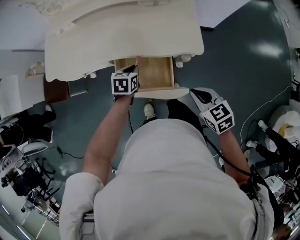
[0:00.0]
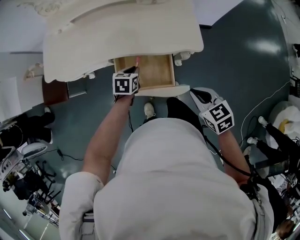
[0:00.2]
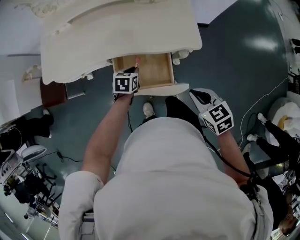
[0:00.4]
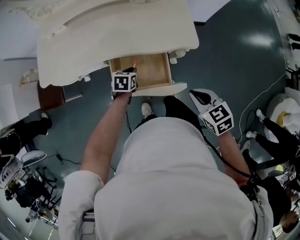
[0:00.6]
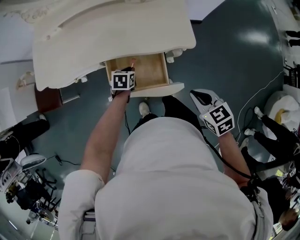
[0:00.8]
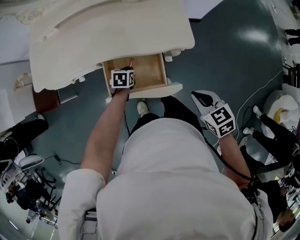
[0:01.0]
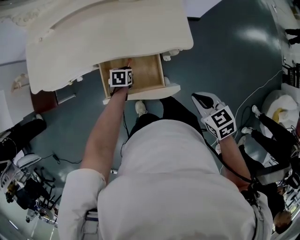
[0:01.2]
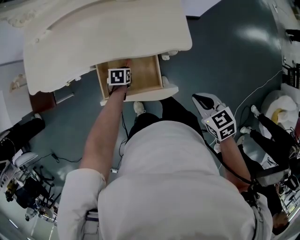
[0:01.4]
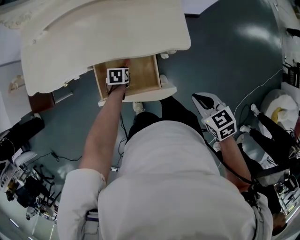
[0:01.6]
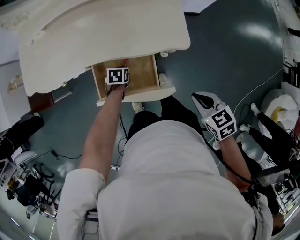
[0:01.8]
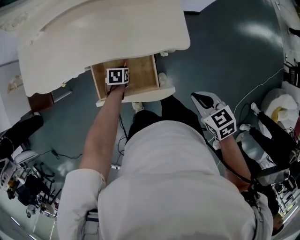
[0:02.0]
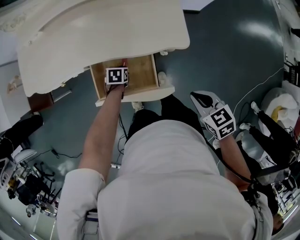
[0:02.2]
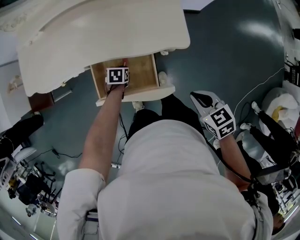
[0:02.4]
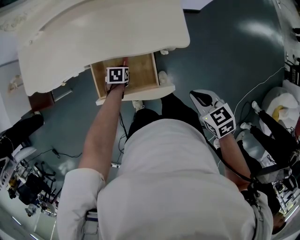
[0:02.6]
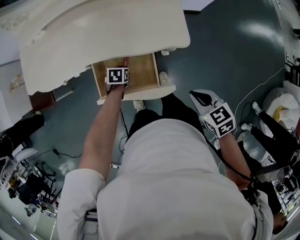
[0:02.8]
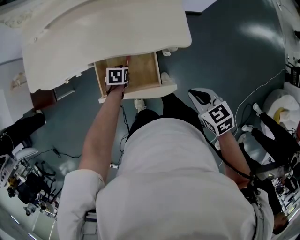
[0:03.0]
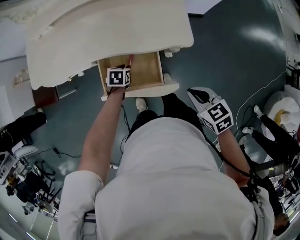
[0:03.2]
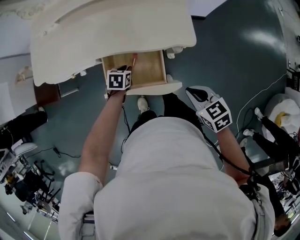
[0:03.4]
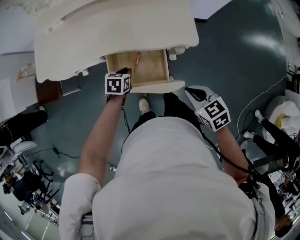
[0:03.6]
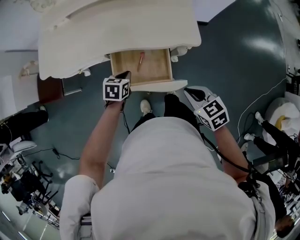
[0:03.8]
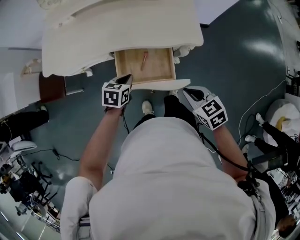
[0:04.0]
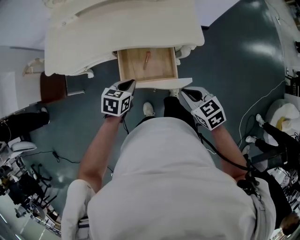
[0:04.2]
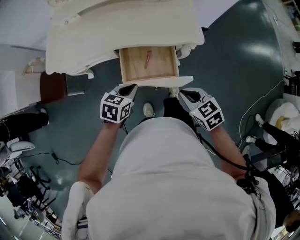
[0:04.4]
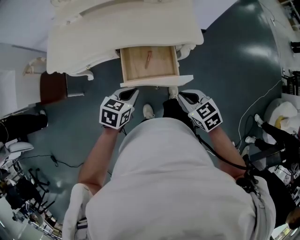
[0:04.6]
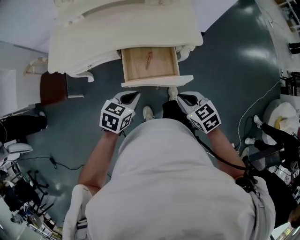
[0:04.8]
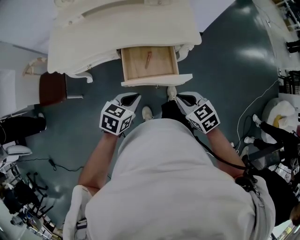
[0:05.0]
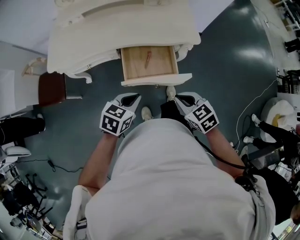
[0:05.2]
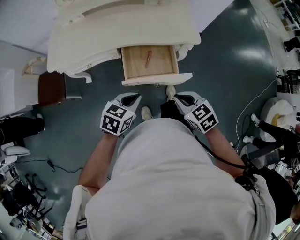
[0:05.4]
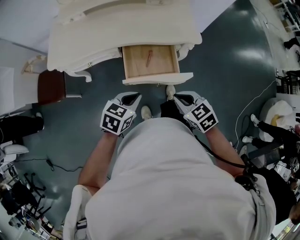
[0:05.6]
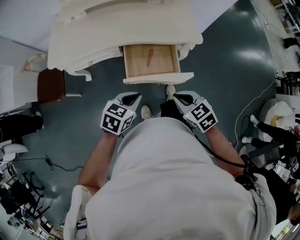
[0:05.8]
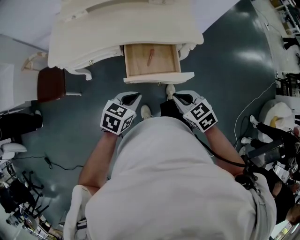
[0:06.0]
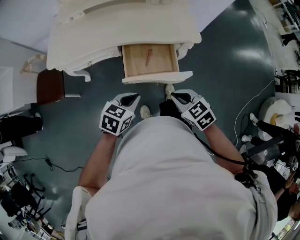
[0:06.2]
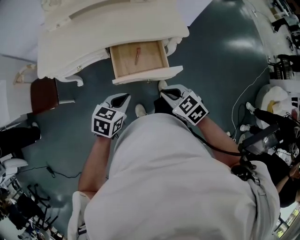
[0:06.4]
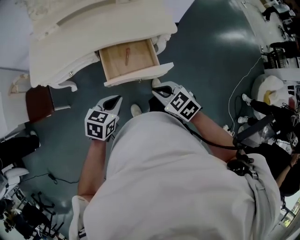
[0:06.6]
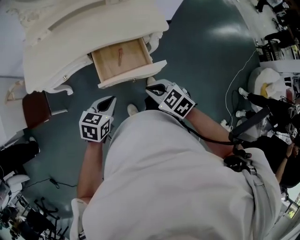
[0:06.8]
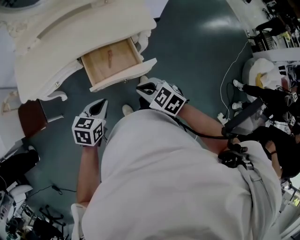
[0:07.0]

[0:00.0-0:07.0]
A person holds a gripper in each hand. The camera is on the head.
0.0 to 1.4 s: The left gripper travels downward by about 15 cm. The right gripper heads to the right, covering approximately 5 cm.
1.4 to 2.8 s: There are only small adjustments of the grippers.
2.8 to 4.2 s: The right gripper heads to the left, covering some 15 cm; the left gripper is displaced upward and backward by some 25 cm, changes its angle by some 20 degrees, and closes.
4.2 to 5.6 s: The left gripper heads backward and upward, covering roughly 15 cm. Meanwhile the right gripper shifts approximately 10 cm backward and to the left.
5.6 to 7.0 s: There are only small adjustments of the grippers.

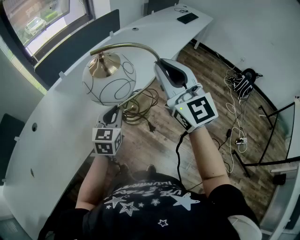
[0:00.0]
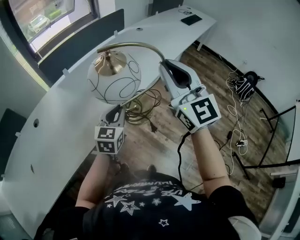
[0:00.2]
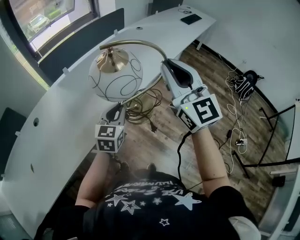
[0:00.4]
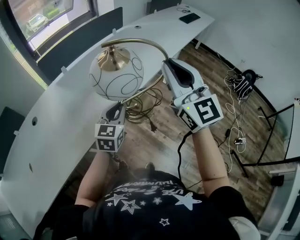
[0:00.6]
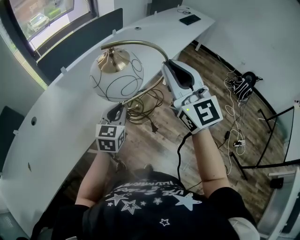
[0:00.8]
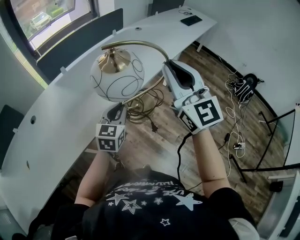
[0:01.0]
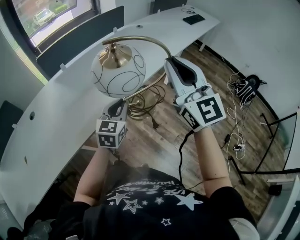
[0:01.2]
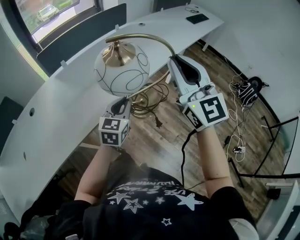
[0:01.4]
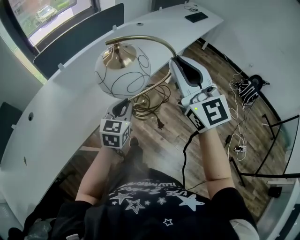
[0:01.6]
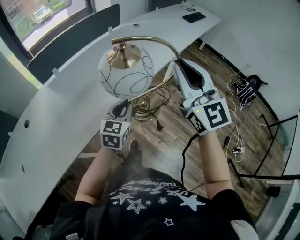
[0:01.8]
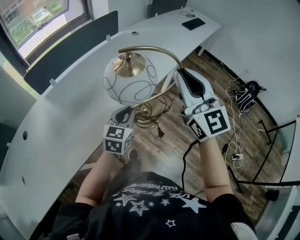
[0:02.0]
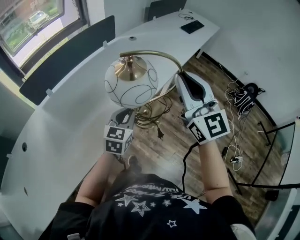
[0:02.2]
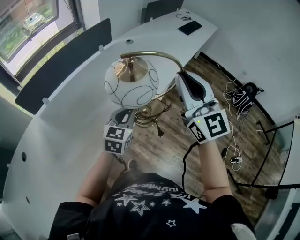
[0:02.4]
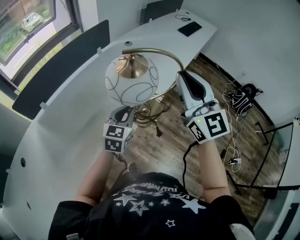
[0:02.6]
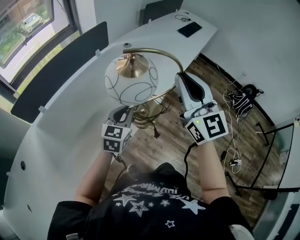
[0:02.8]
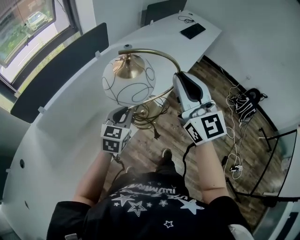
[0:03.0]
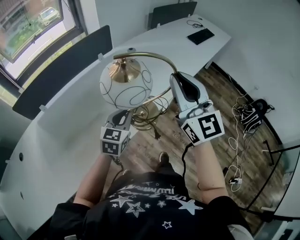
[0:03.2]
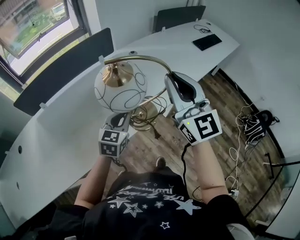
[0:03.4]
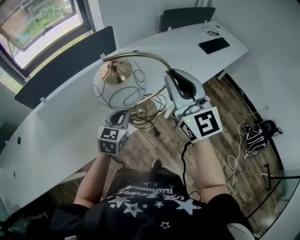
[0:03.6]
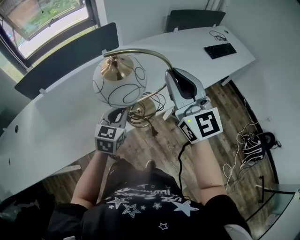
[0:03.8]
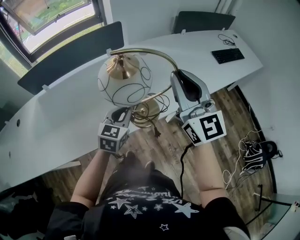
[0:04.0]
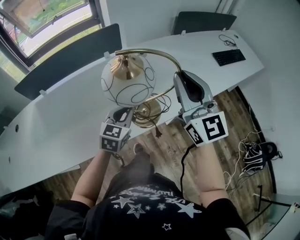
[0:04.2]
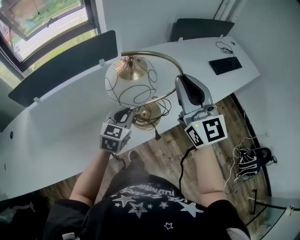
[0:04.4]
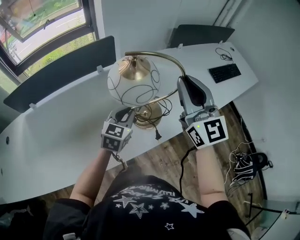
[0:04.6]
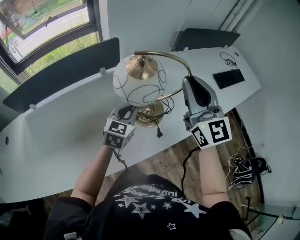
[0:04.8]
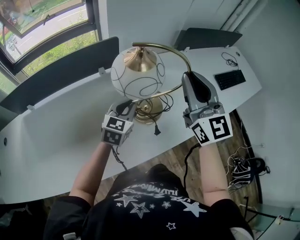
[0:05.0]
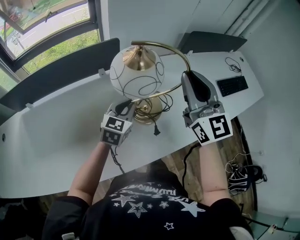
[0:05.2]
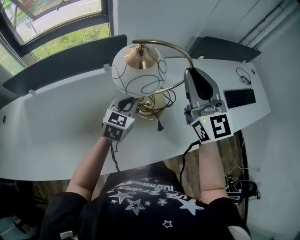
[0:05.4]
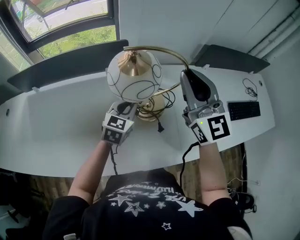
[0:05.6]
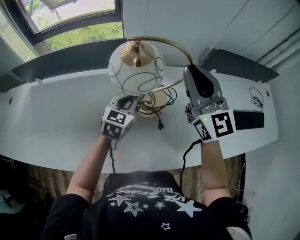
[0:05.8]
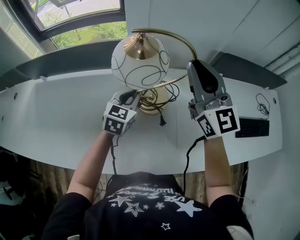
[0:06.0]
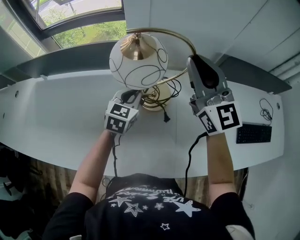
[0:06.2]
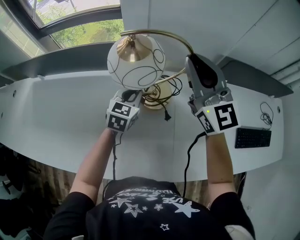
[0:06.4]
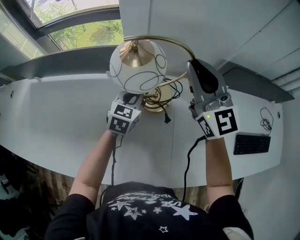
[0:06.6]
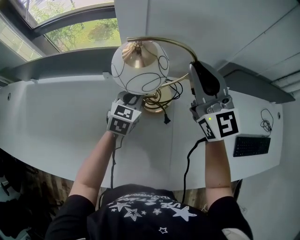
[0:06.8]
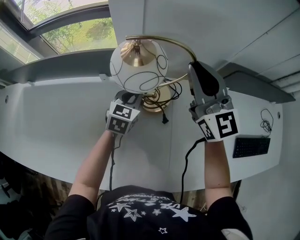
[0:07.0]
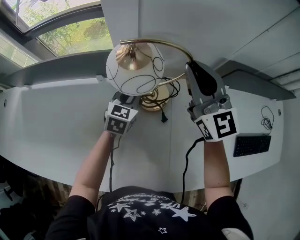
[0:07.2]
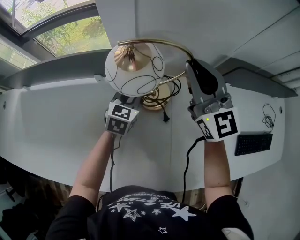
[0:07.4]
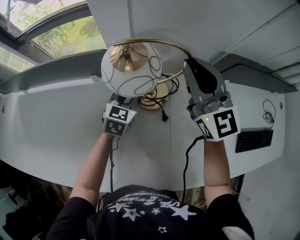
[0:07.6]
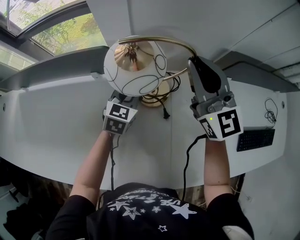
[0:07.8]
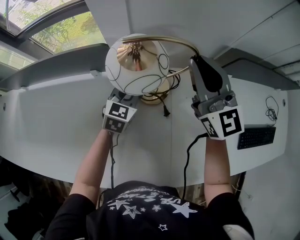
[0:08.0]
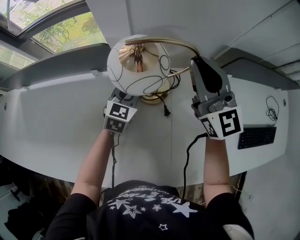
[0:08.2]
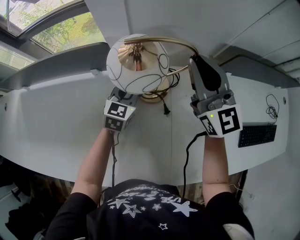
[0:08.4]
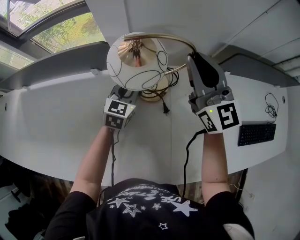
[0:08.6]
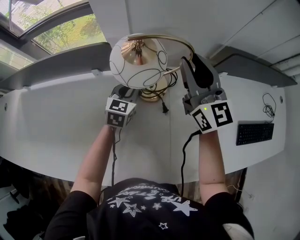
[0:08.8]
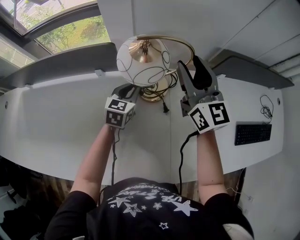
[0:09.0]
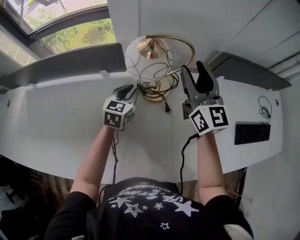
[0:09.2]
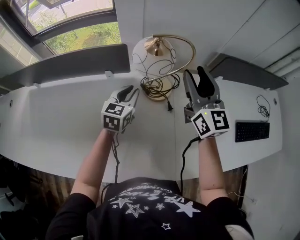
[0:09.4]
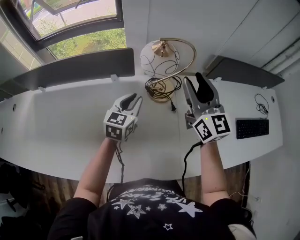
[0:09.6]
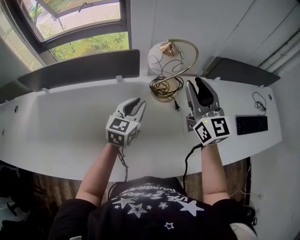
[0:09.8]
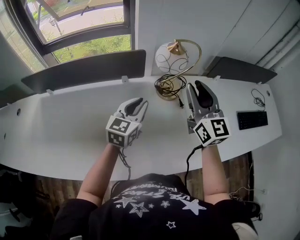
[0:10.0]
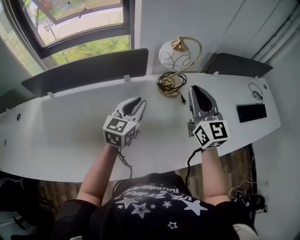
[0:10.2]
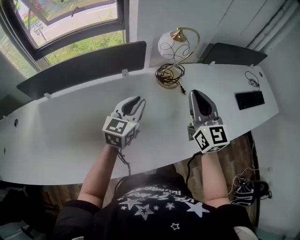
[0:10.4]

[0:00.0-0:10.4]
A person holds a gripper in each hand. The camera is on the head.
0.0 to 1.4 s: Both grippers move to the right, some 10 cm.
1.4 to 3.0 s: The grippers both shift forward by about 25 cm.
3.0 to 4.4 s: Both grippers travel together forward and to the right, roughly 25 cm. The right gripper swivels roughly 20 degrees.
4.4 to 6.0 s: The two grippers go roughly 30 cm forward. The right gripper changes its angle by about 20 degrees. The left gripper swivels approximately 20 degrees.
6.0 to 7.4 s: The left gripper is displaced forward, downward and to the right by approximately 15 cm; the right gripper is displaced forward and downward by about 15 cm.
7.4 to 9.0 s: The right gripper opens up.
9.0 to 10.4 s: The left gripper travels backward, upward and to the left by roughly 25 cm, and rotates approximately 20 degrees. Meanwhile the right gripper shifts some 25 cm backward, turns by approximately 20 degrees, and closes up.

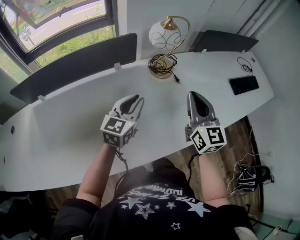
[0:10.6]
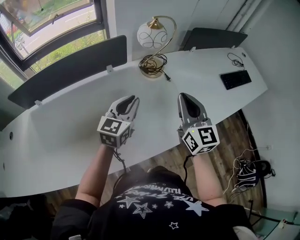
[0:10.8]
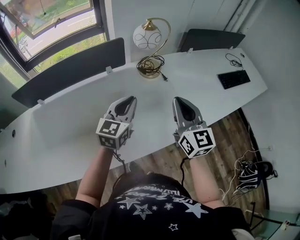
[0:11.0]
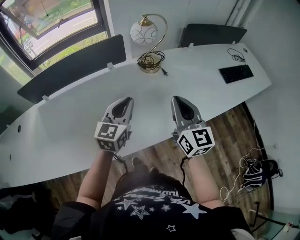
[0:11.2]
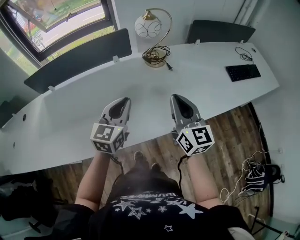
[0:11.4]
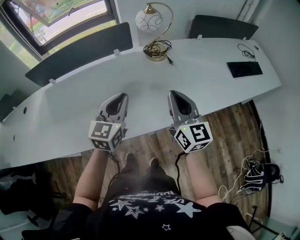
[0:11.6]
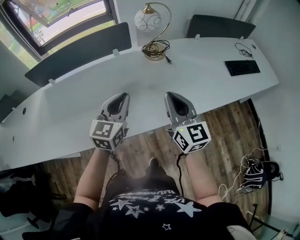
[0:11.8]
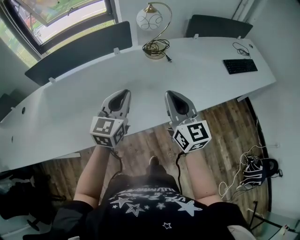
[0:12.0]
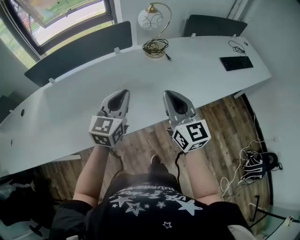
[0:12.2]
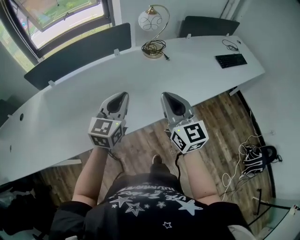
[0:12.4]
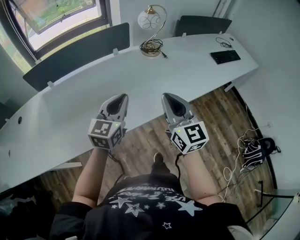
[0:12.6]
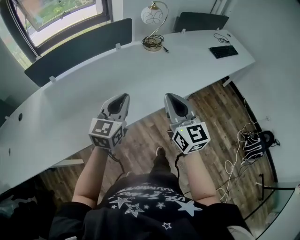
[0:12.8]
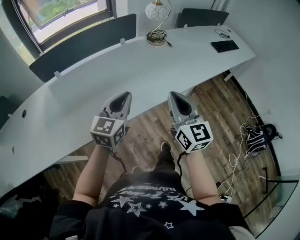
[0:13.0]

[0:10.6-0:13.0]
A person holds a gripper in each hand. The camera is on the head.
10.6 to 11.8 s: The two grippers go roughly 15 cm backward.
11.8 to 13.0 s: Both grippers move backward and to the left, about 25 cm.

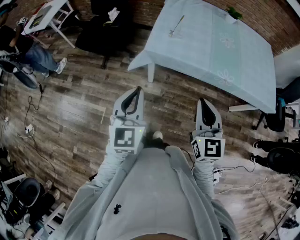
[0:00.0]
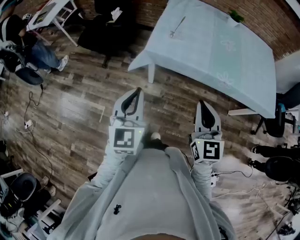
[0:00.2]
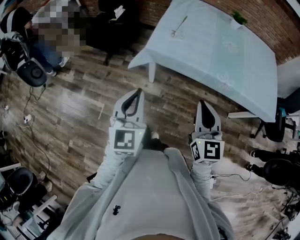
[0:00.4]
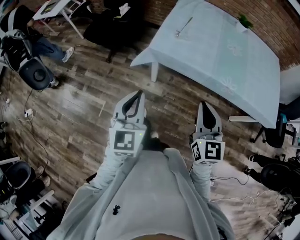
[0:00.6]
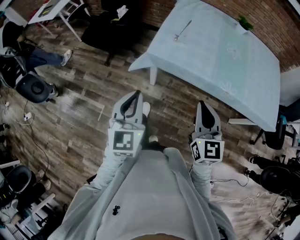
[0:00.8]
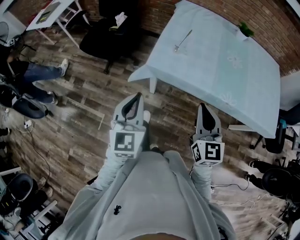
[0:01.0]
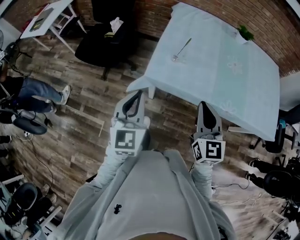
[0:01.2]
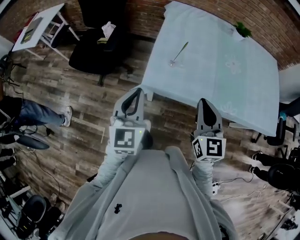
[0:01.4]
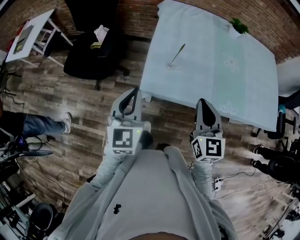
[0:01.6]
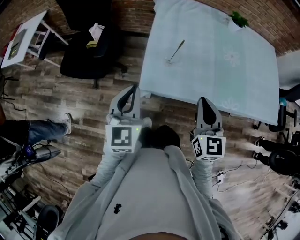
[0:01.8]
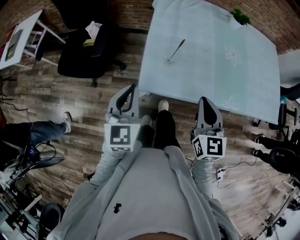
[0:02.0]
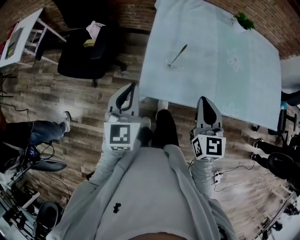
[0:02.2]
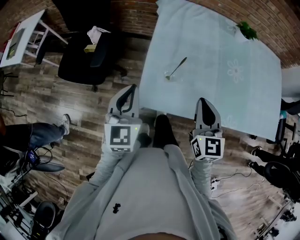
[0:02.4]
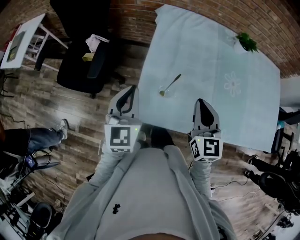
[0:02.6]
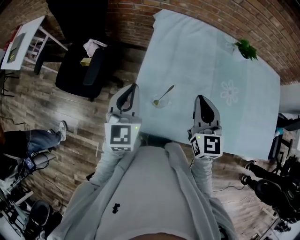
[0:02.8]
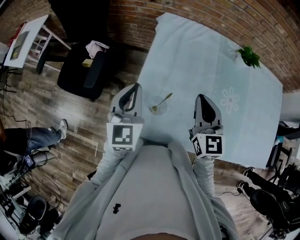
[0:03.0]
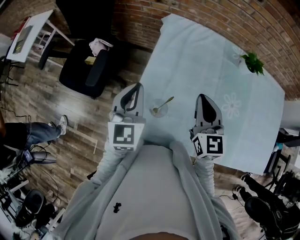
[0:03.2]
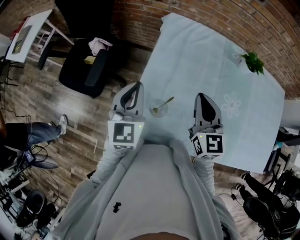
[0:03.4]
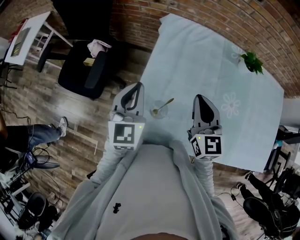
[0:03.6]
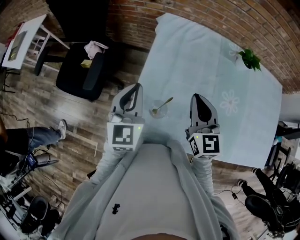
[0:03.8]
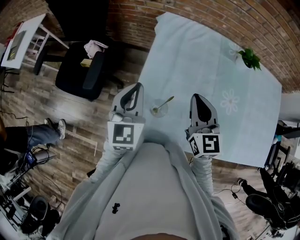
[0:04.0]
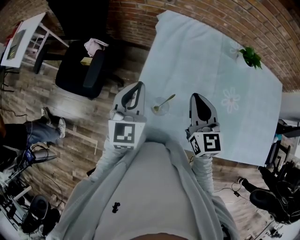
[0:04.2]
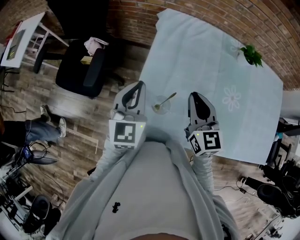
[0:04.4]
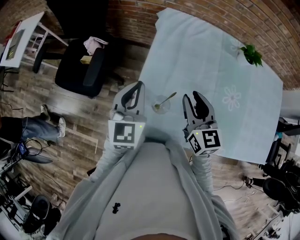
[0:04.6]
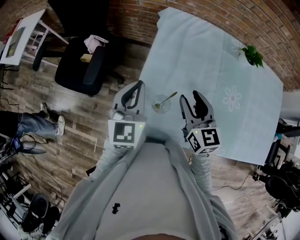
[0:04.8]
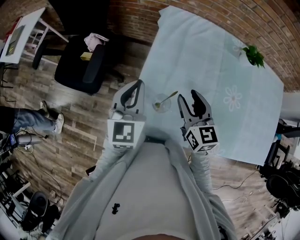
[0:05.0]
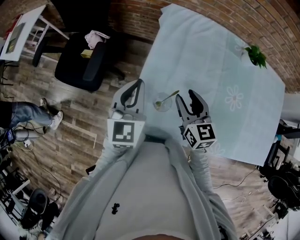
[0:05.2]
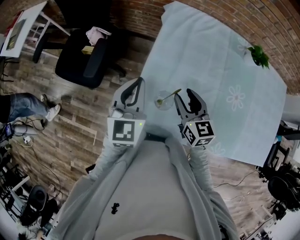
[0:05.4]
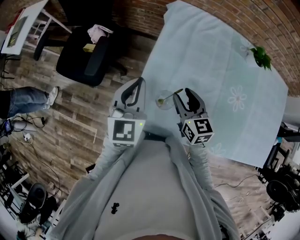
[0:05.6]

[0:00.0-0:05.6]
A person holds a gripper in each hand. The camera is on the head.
0.0 to 1.4 s: Both grippers move forward, about 20 cm.
1.4 to 2.8 s: The two grippers go some 25 cm forward.
2.8 to 4.2 s: The grippers make only small movements.
4.2 to 5.6 s: The right gripper moves downward, roughly 10 cm, and opens up.
